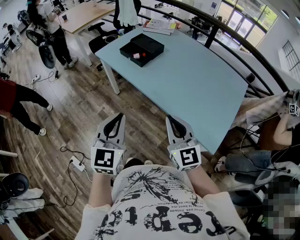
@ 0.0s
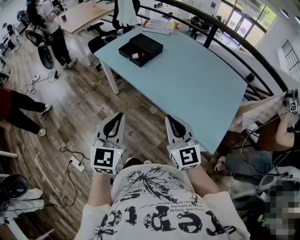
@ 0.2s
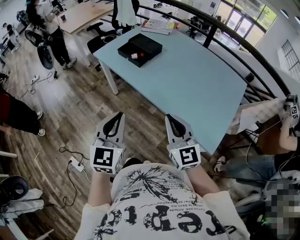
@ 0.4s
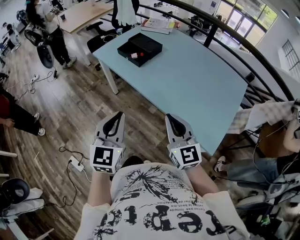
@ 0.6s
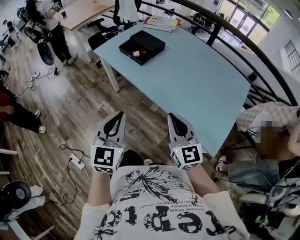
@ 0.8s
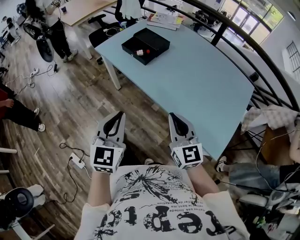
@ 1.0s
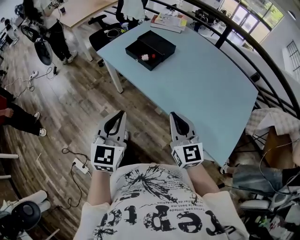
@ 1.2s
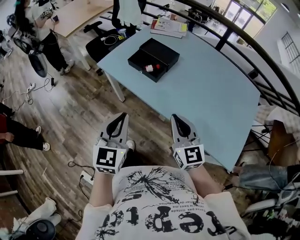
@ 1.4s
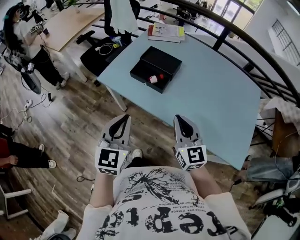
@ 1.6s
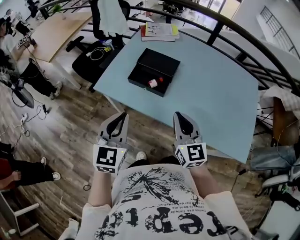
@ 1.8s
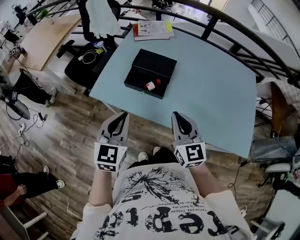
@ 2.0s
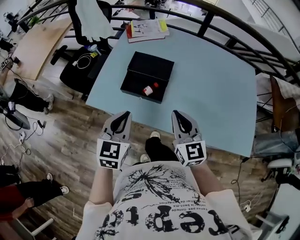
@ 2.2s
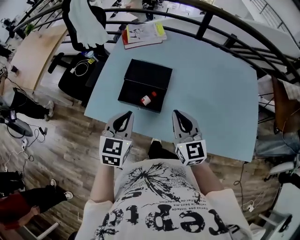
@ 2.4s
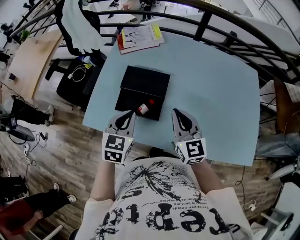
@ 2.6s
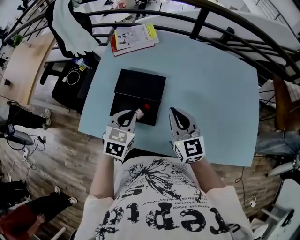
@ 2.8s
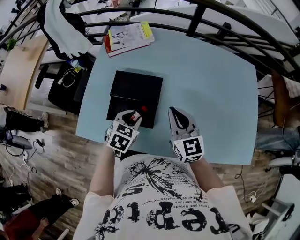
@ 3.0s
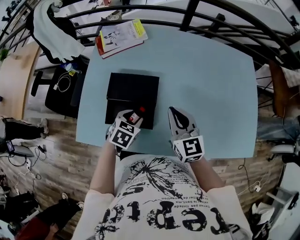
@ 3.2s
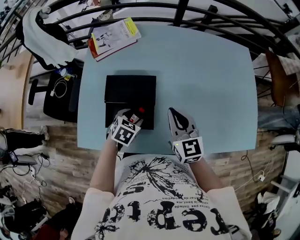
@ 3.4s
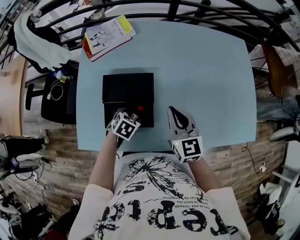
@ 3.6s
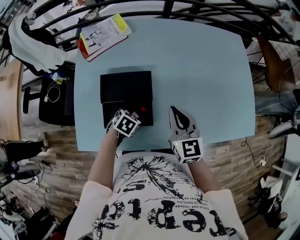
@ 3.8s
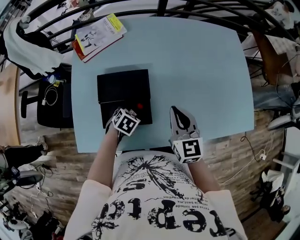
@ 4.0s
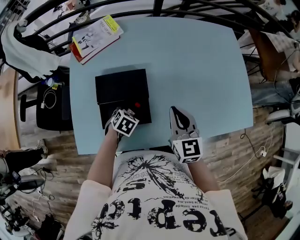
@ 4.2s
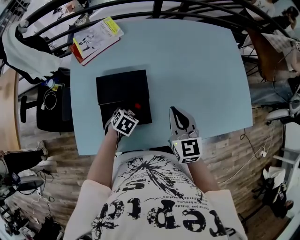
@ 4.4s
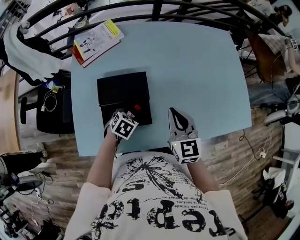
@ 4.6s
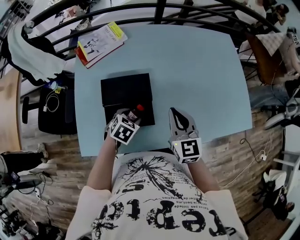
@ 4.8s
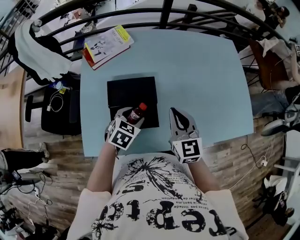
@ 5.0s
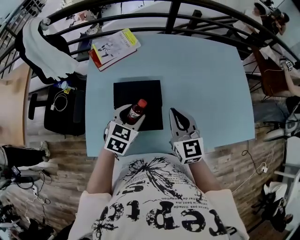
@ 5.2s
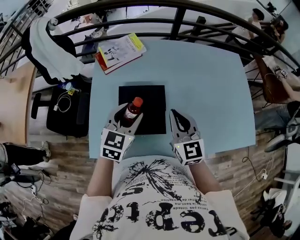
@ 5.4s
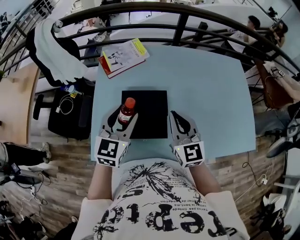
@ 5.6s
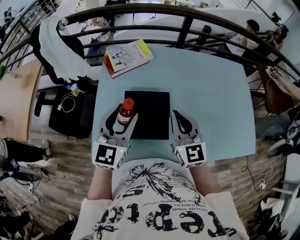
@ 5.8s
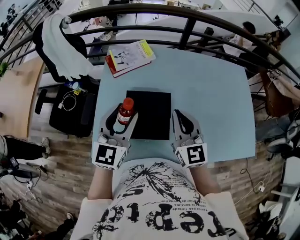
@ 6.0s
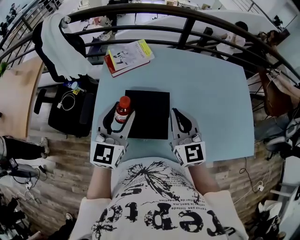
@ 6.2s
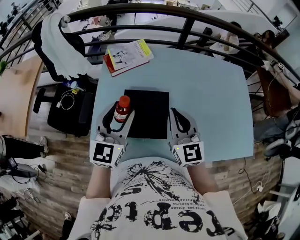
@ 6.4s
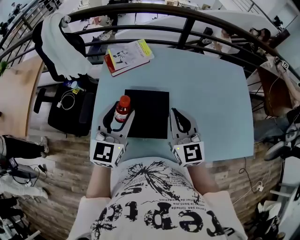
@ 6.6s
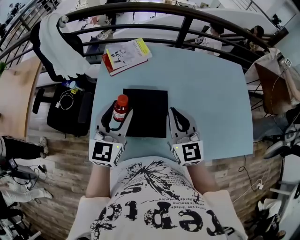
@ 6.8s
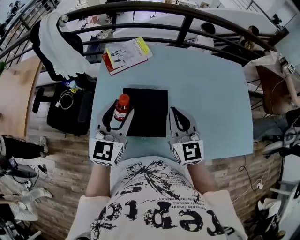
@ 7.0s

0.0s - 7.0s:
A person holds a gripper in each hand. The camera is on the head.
0.0s - 1.4s: Both grippers move forward and to the left, roughly 25 cm.
1.4s - 2.8s: The right gripper shifts by roughly 35 cm, and rotates roughly 20 degrees. Meanwhile the left gripper ends up approximately 40 cm from where it was, and swivels roughly 40 degrees.
2.8s - 4.2s: The left gripper heads downward, covering approximately 15 cm, swivels about 40 degrees, and opens up. Meanwhile the right gripper changes its angle by roughly 30 degrees.
4.2s - 5.6s: The left gripper goes roughly 30 cm upward, and tilts its fingers approximately 50 degrees upward. Meanwhile the right gripper shifts approximately 15 cm to the left and upward.
5.6s - 7.0s: The grippers make only small movements.

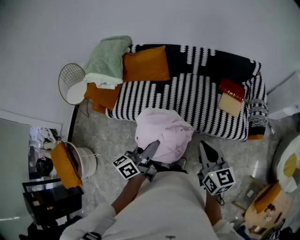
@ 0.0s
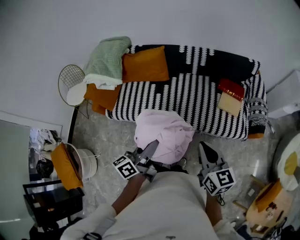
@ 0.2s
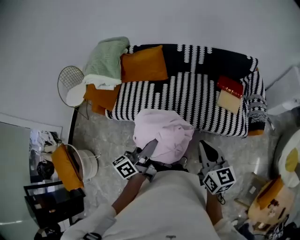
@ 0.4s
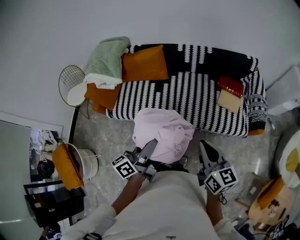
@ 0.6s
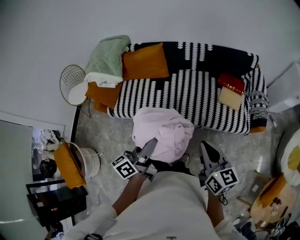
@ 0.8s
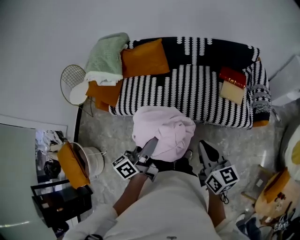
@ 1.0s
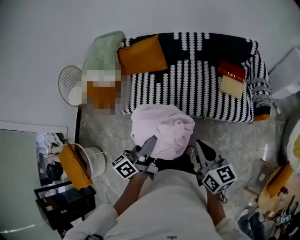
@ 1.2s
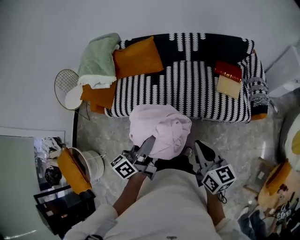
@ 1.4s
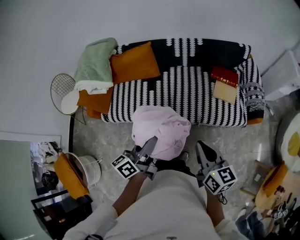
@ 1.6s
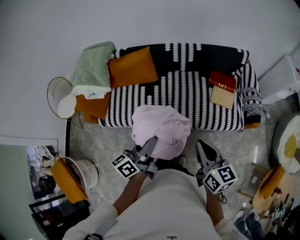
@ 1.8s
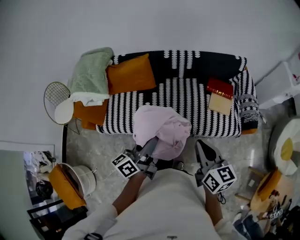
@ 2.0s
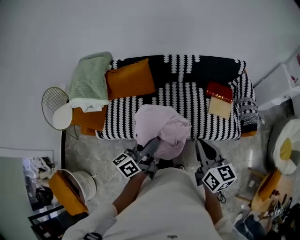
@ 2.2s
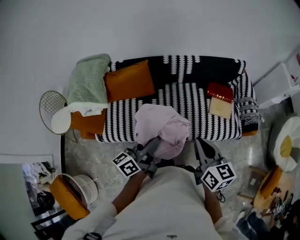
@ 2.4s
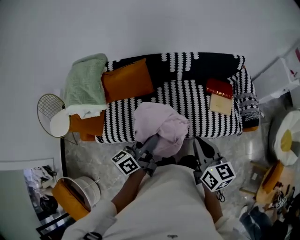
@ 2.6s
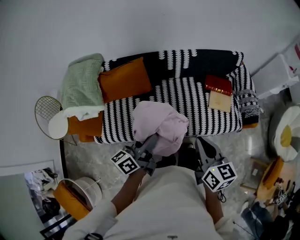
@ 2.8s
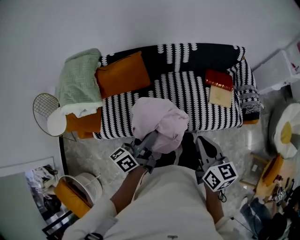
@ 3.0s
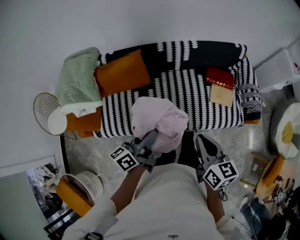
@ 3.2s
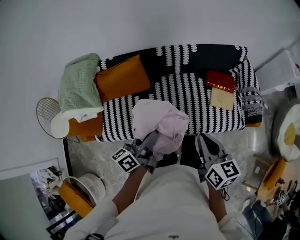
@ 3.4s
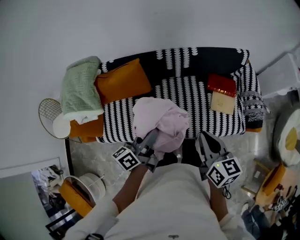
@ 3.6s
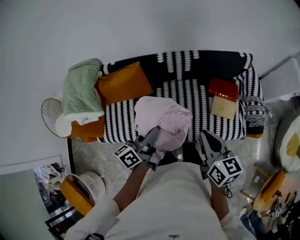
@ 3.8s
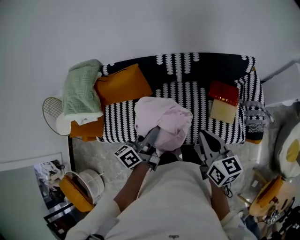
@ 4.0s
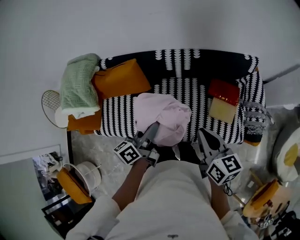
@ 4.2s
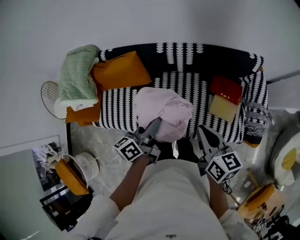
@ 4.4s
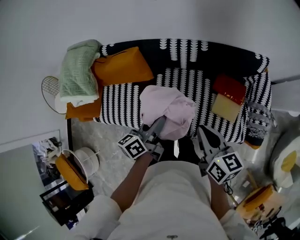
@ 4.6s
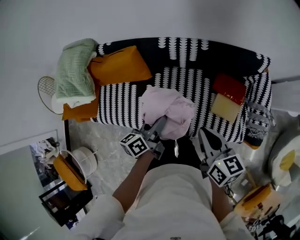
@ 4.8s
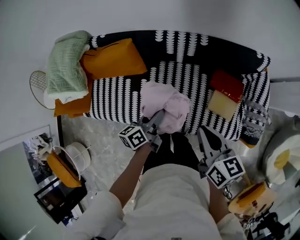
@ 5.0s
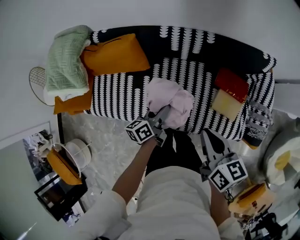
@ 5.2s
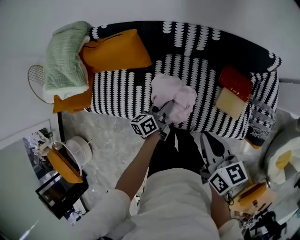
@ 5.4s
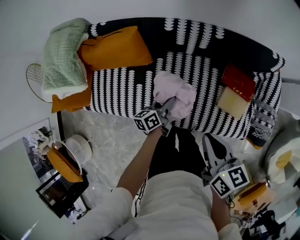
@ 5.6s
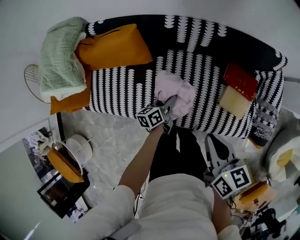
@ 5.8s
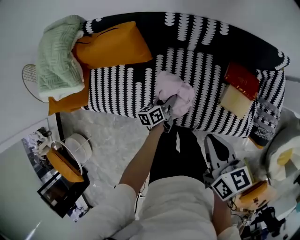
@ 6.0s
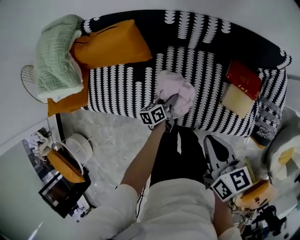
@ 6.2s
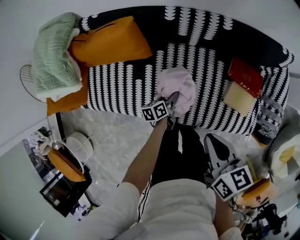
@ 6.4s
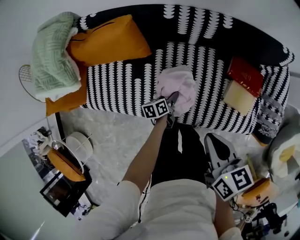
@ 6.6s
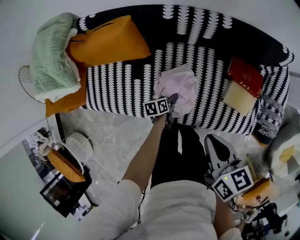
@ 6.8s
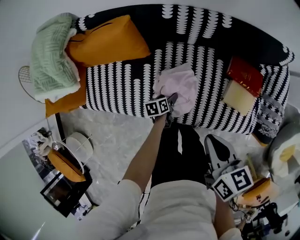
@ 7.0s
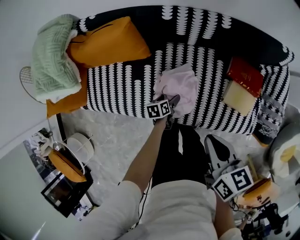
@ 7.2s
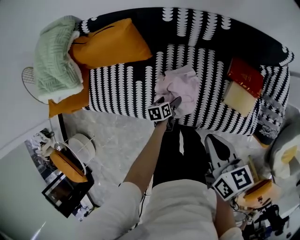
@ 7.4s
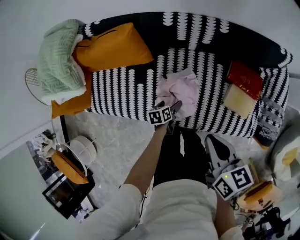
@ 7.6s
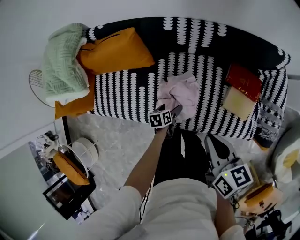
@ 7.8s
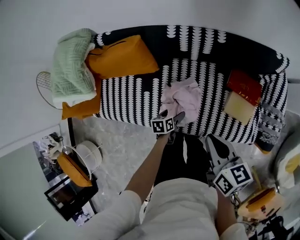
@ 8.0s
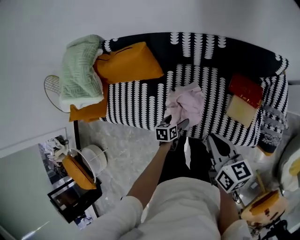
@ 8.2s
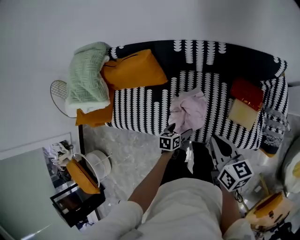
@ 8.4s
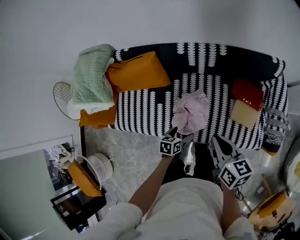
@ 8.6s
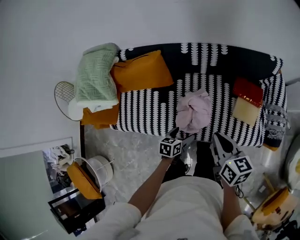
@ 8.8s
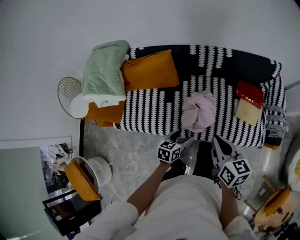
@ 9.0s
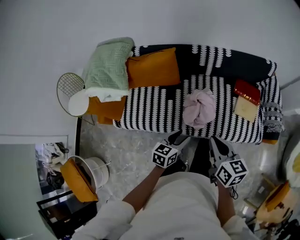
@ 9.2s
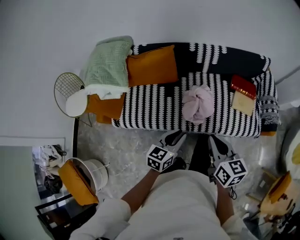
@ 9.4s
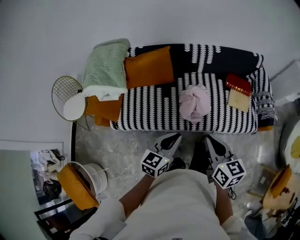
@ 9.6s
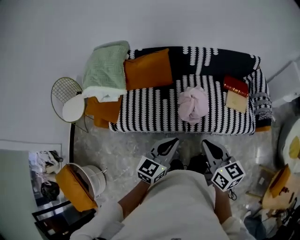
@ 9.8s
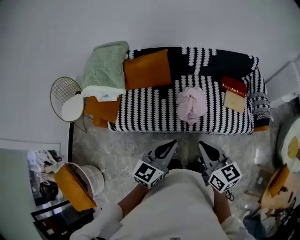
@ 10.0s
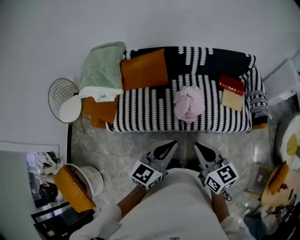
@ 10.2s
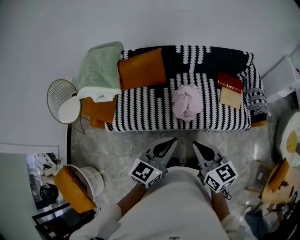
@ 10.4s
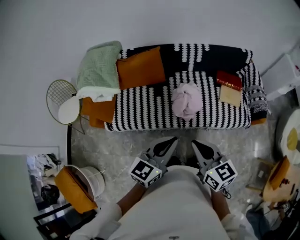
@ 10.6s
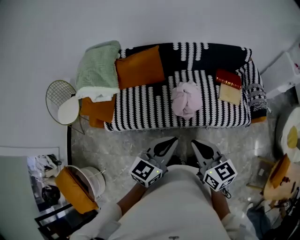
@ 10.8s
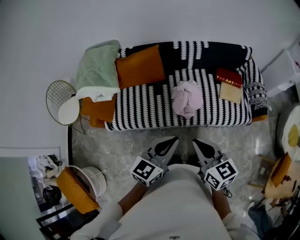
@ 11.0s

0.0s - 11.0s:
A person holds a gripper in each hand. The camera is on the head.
1.6s - 3.2s: The left gripper shifts some 20 cm forward. The right gripper travels forward and to the left by some 20 cm.
3.2s - 4.8s: The left gripper travels forward, to the right and downward by roughly 25 cm. The right gripper goes some 20 cm forward and to the right.
4.8s - 6.2s: The left gripper heads downward, covering about 30 cm, while the right gripper is displaced downward and to the left by some 10 cm.
6.2s - 7.8s: The left gripper ends up roughly 5 cm from where it was, turns by roughly 20 degrees, and opens its fingers.
7.8s - 9.4s: The right gripper is displaced backward, to the left and upward by some 30 cm. The left gripper heads upward and backward, covering approximately 40 cm, changes its angle by approximately 50 degrees, and closes.
9.4s - 11.0s: The left gripper moves upward and backward, roughly 15 cm; the right gripper goes roughly 10 cm backward.

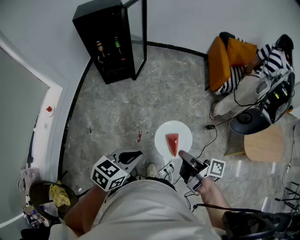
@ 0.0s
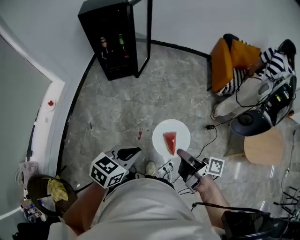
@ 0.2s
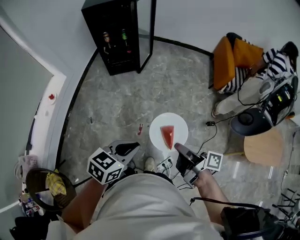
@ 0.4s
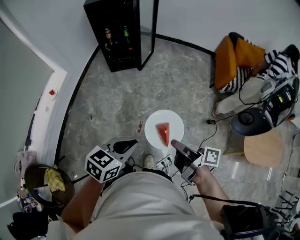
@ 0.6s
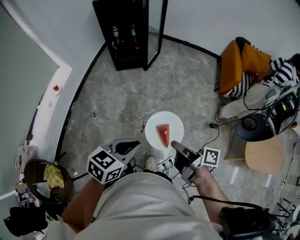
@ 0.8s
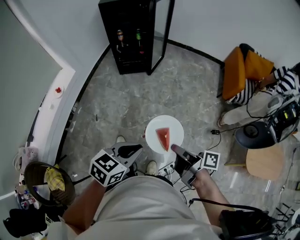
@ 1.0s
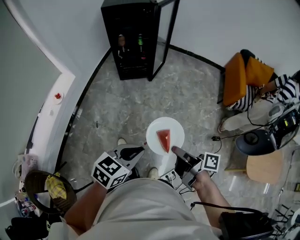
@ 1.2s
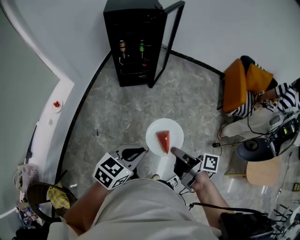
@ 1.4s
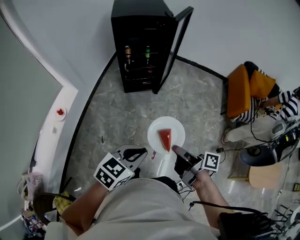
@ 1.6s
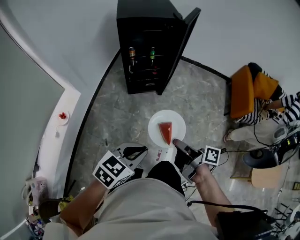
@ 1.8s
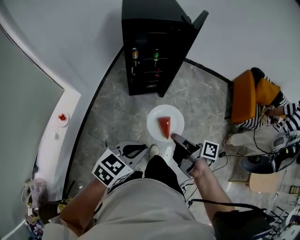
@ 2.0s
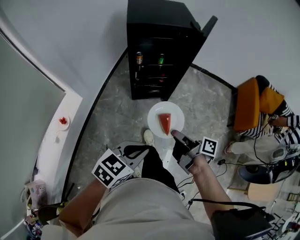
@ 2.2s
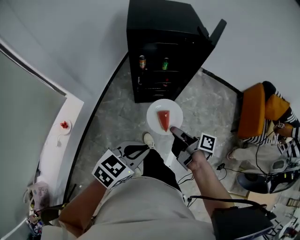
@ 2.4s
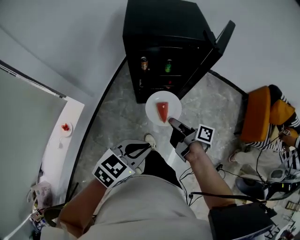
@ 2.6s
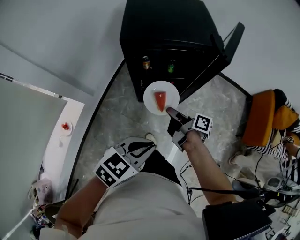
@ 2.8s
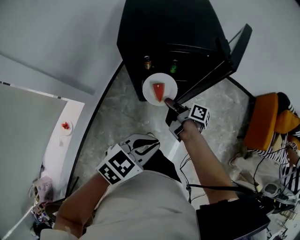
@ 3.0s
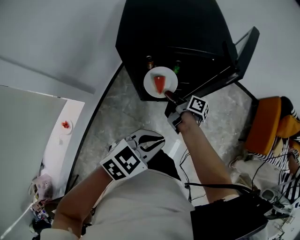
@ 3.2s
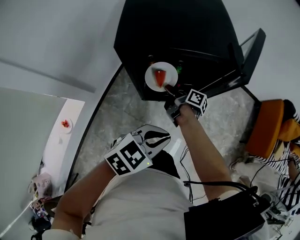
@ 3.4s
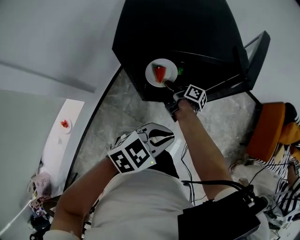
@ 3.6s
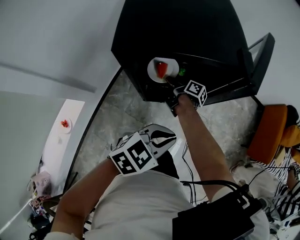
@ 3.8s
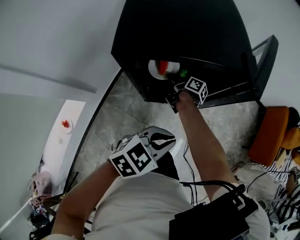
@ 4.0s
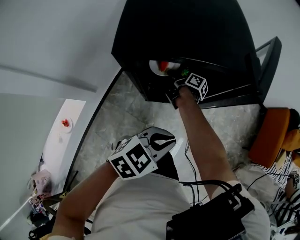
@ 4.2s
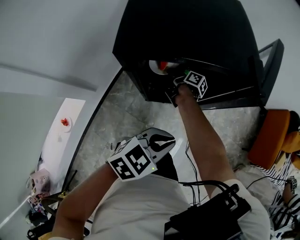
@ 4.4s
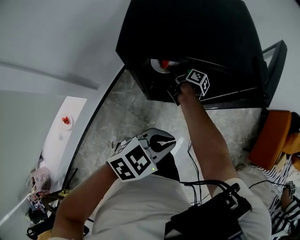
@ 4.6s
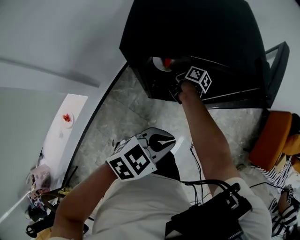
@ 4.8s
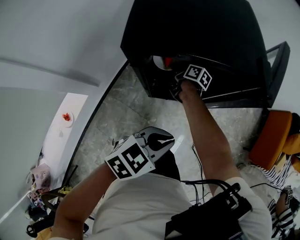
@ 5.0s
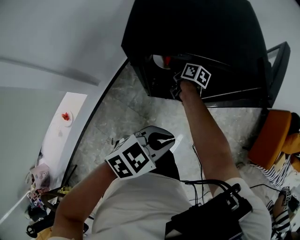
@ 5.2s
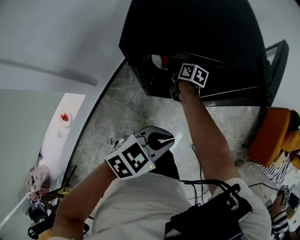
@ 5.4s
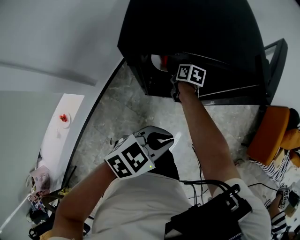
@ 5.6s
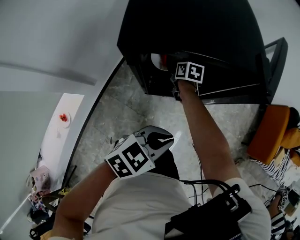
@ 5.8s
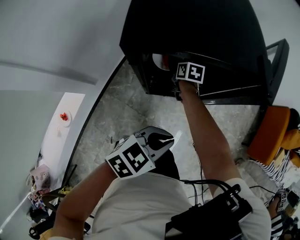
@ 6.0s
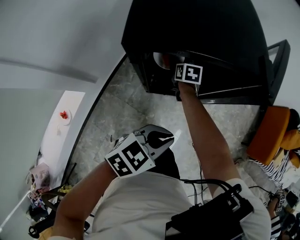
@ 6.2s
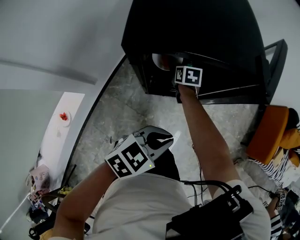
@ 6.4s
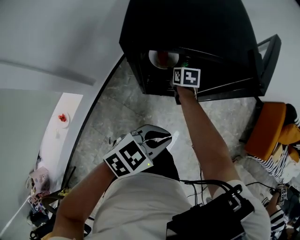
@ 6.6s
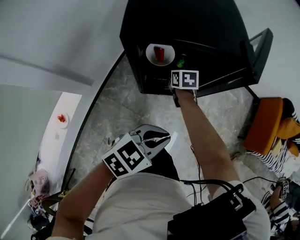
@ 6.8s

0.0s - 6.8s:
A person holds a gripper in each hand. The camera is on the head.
0.0s - 1.4s: The grippers both shift to the left and forward by roughly 20 cm.
1.4s - 2.8s: The two grippers travel together, forward and to the left, some 50 cm.
2.8s - 4.0s: The right gripper is displaced forward and downward by about 25 cm. The left gripper heads forward and downward, covering approximately 15 cm.
4.0s - 5.4s: The right gripper swivels approximately 40 degrees.
5.4s - 6.8s: The left gripper changes place by some 5 cm. Meanwhile the right gripper shifts approximately 10 cm backward and to the right, swivels some 30 degrees, and opens.
